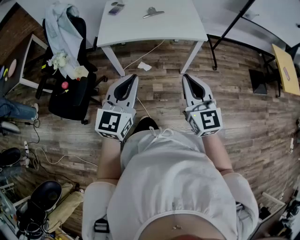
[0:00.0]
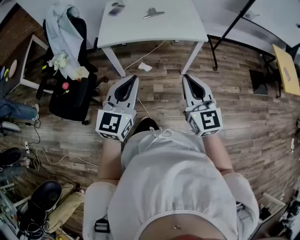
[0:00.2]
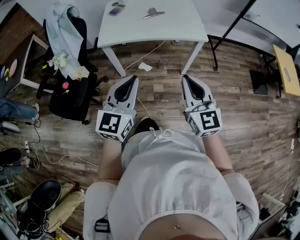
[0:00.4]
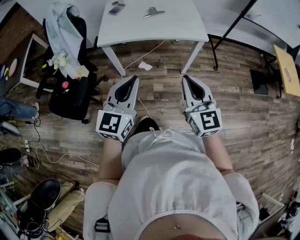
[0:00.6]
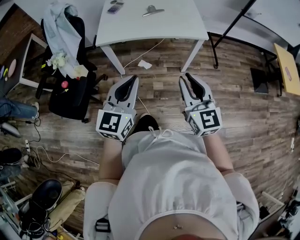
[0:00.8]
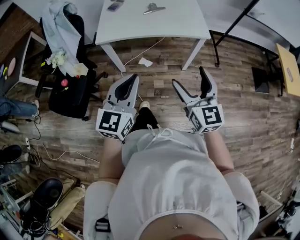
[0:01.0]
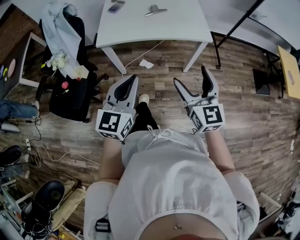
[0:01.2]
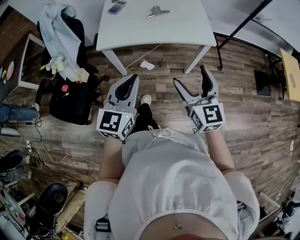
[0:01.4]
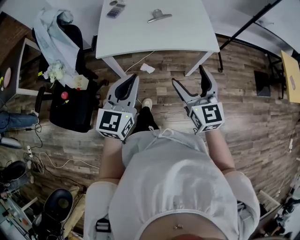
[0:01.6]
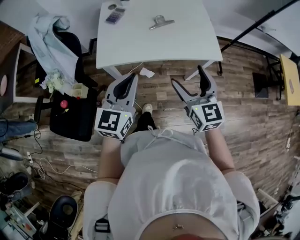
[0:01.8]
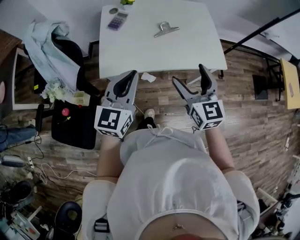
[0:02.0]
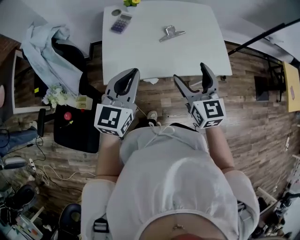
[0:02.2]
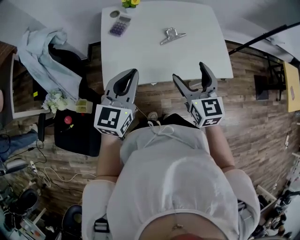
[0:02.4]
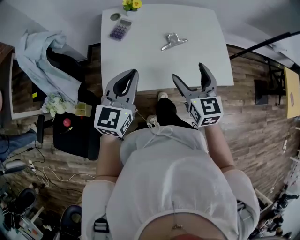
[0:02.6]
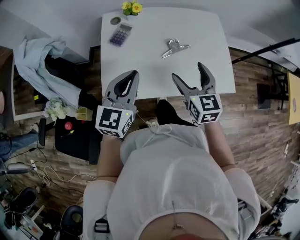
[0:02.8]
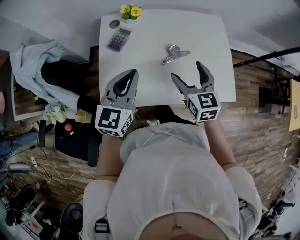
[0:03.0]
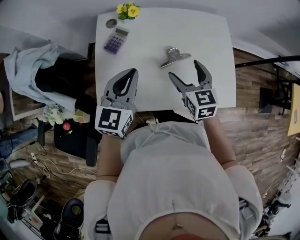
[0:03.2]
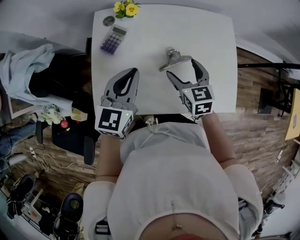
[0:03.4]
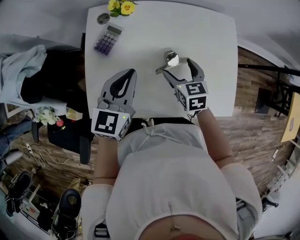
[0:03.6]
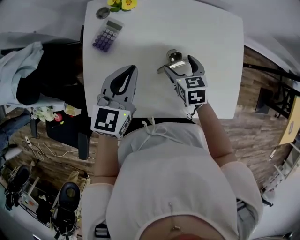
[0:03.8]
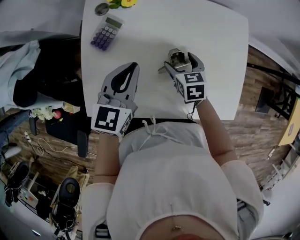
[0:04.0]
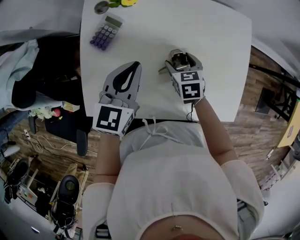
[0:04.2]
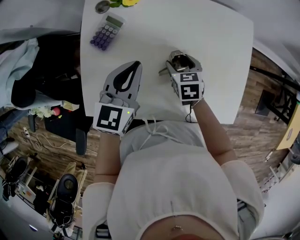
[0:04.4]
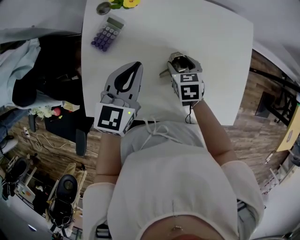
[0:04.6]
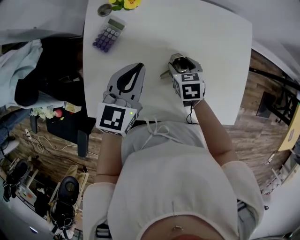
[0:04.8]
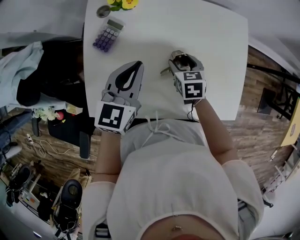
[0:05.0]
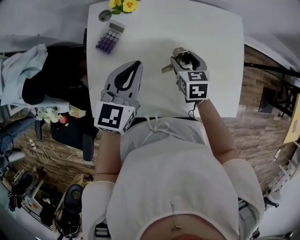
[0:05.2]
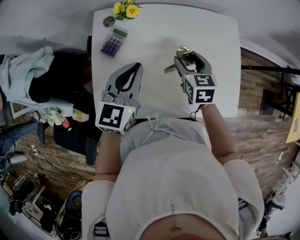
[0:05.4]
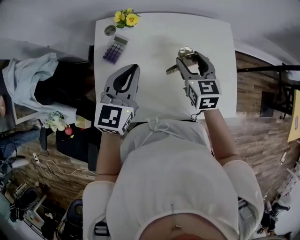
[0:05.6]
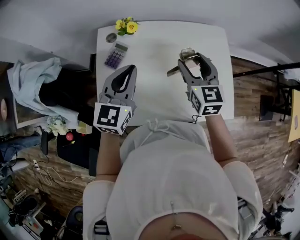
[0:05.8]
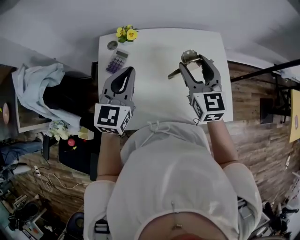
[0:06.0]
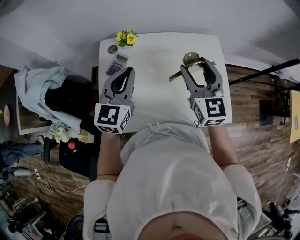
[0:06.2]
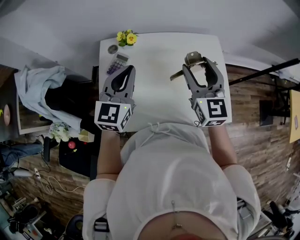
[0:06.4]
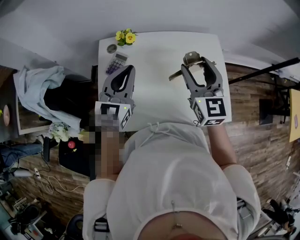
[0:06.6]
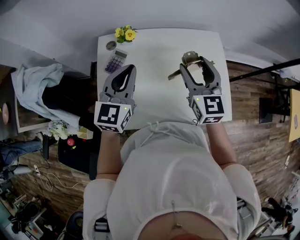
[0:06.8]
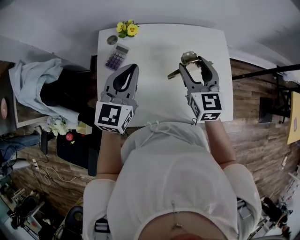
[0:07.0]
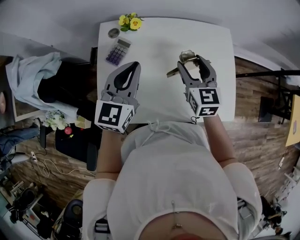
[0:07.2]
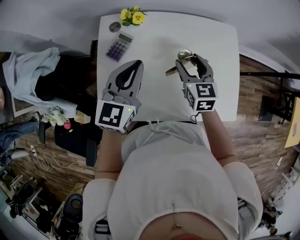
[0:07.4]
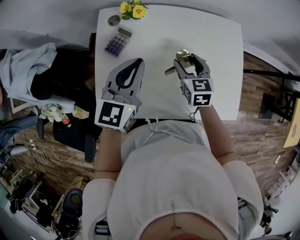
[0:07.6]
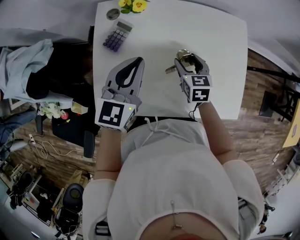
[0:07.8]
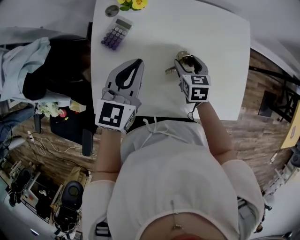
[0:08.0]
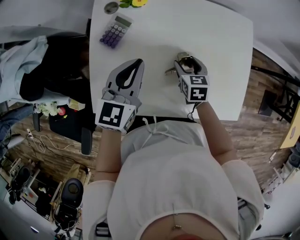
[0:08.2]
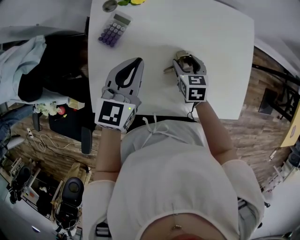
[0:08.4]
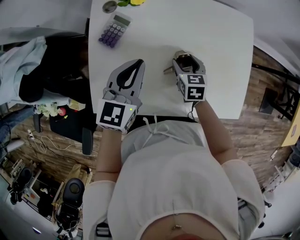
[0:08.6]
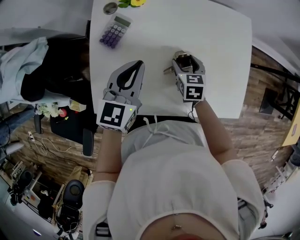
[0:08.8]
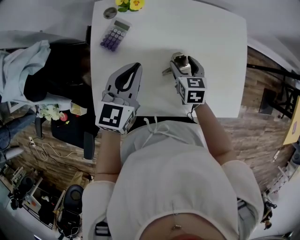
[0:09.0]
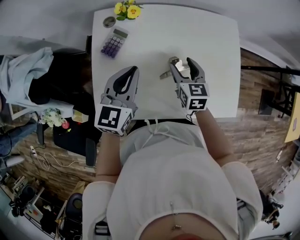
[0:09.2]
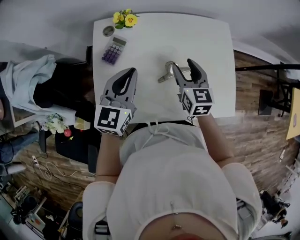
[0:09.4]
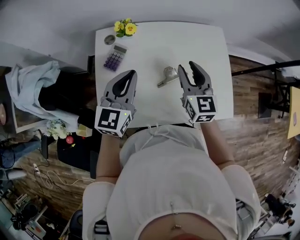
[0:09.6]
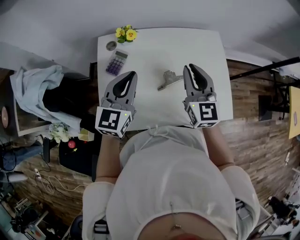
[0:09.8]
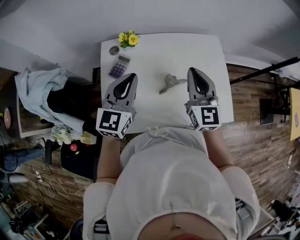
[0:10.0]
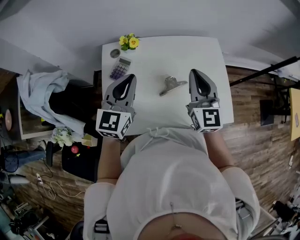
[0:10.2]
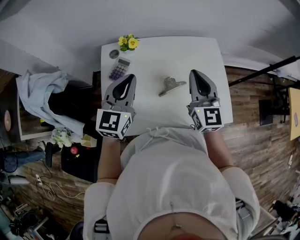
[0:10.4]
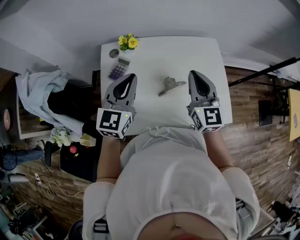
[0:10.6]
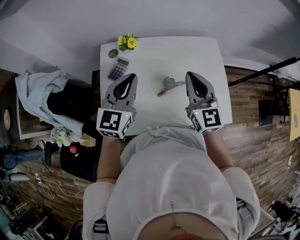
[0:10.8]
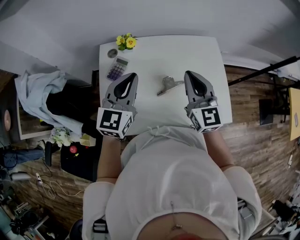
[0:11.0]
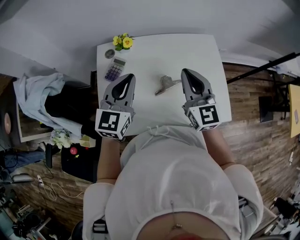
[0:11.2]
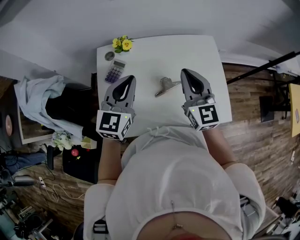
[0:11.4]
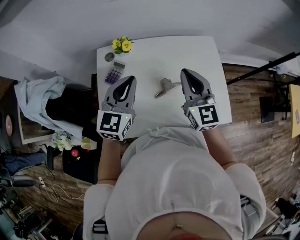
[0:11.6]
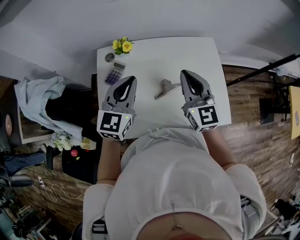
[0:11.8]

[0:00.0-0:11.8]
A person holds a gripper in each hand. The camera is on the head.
0:00.0 to 0:01.4: Both grippers travel together forward, about 10 cm. The right gripper opens up.
0:01.4 to 0:03.0: Both grippers are carried forward, roughly 50 cm.
0:03.0 to 0:04.4: The left gripper shifts about 20 cm forward and downward; the right gripper heads downward and forward, covering about 25 cm, and points its fingers roughly 30 degrees further downward.
0:04.4 to 0:06.0: The right gripper goes approximately 30 cm upward, and tilts its fingers some 40 degrees upward. The left gripper shifts about 15 cm upward.
0:06.0 to 0:07.4: The right gripper goes approximately 15 cm downward.
0:07.4 to 0:08.8: The left gripper moves downward, about 10 cm; the right gripper goes roughly 15 cm downward, and turns by approximately 20 degrees.
0:08.8 to 0:10.4: The left gripper goes about 15 cm upward. Meanwhile the right gripper shifts roughly 30 cm upward, points its fingers roughly 50 degrees further upward, and closes up.
0:10.4 to 0:11.8: The grippers make only small movements.

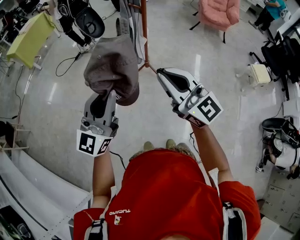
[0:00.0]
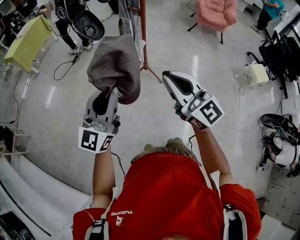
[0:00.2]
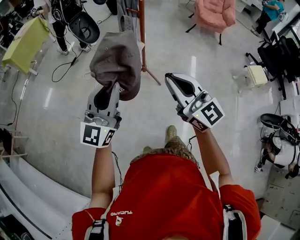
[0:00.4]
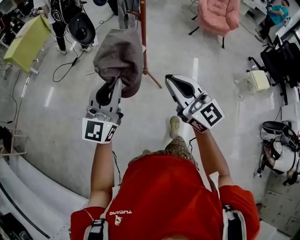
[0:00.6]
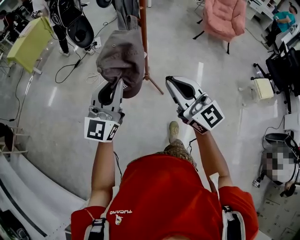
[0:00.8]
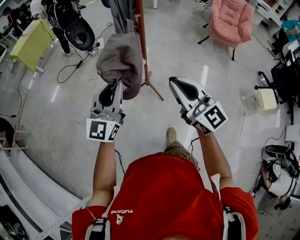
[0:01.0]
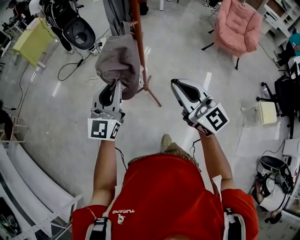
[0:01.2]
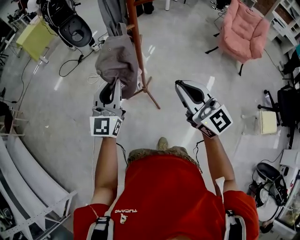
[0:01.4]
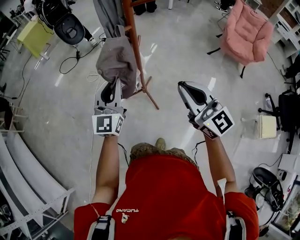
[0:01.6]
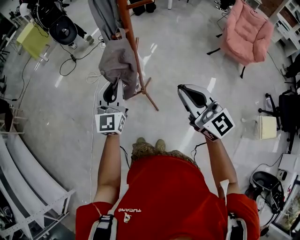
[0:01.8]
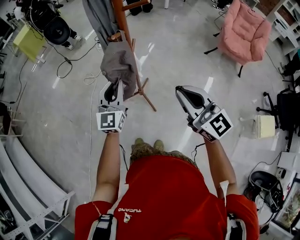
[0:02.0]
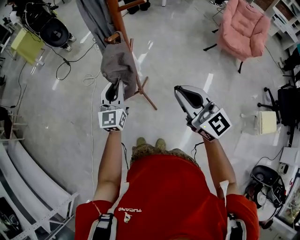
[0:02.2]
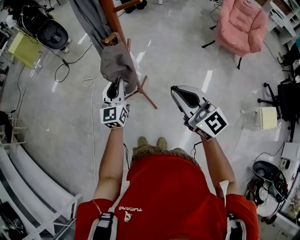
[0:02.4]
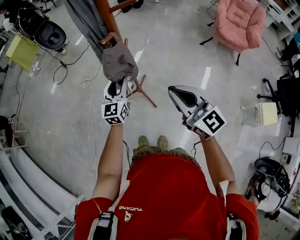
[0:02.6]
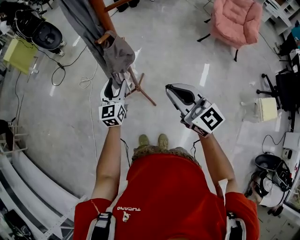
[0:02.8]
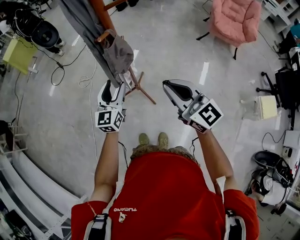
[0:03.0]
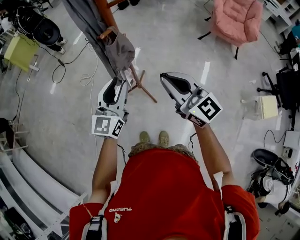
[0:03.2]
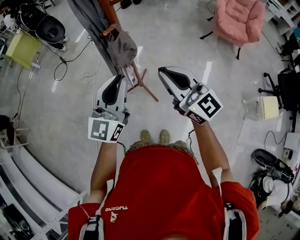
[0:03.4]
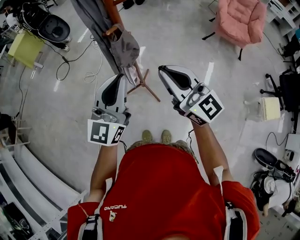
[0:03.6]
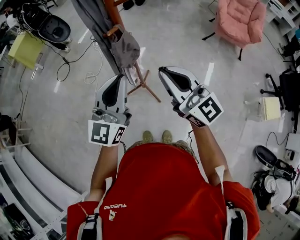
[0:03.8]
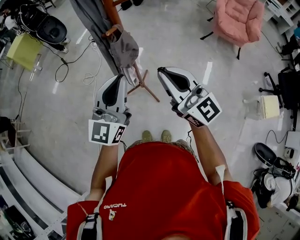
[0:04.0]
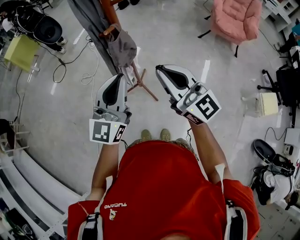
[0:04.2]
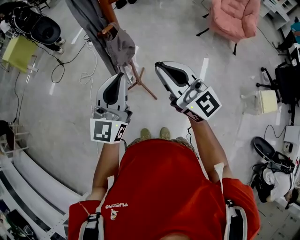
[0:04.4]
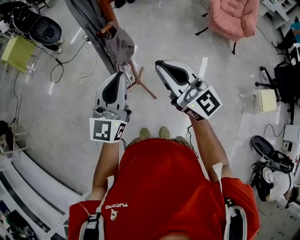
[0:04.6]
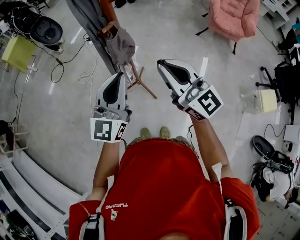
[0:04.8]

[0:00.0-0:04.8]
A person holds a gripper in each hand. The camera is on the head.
0:00.0 to 0:01.6: The grippers both shift forward and to the right by approximately 40 cm. The left gripper changes its angle by roughly 30 degrees.
0:01.6 to 0:03.2: The left gripper reaches about 15 cm downward, then returns, and opens up. The right gripper shifts by about 5 cm.
0:03.2 to 0:04.8: The left gripper is displaced upward by some 5 cm, and closes.

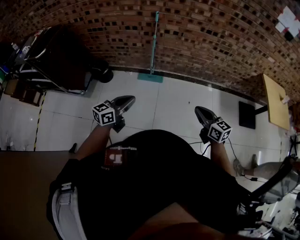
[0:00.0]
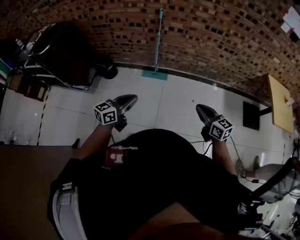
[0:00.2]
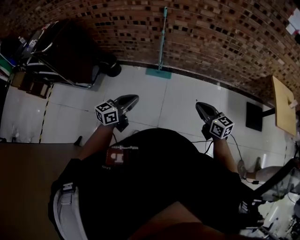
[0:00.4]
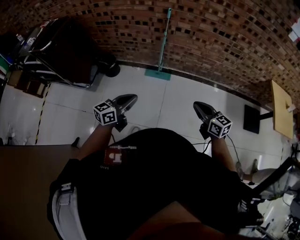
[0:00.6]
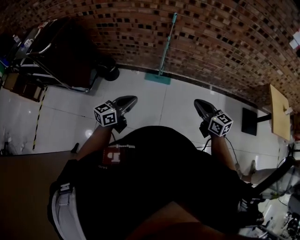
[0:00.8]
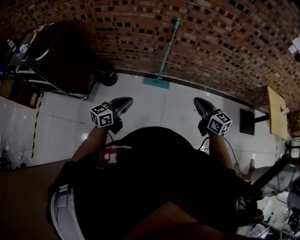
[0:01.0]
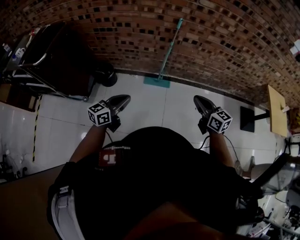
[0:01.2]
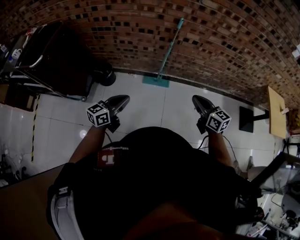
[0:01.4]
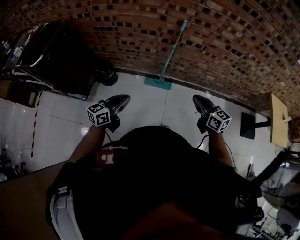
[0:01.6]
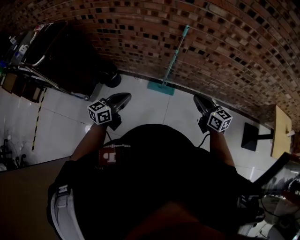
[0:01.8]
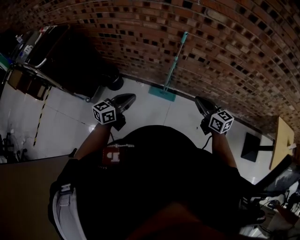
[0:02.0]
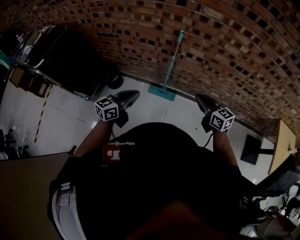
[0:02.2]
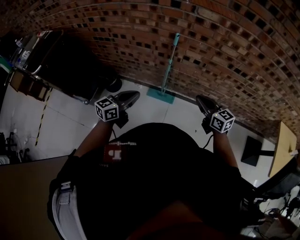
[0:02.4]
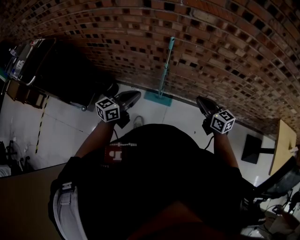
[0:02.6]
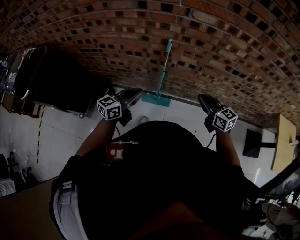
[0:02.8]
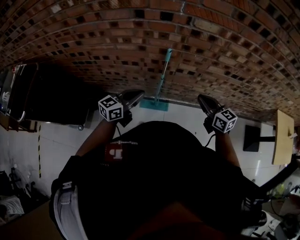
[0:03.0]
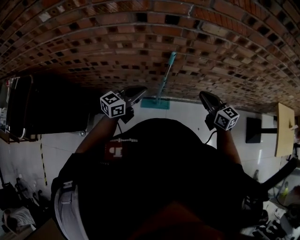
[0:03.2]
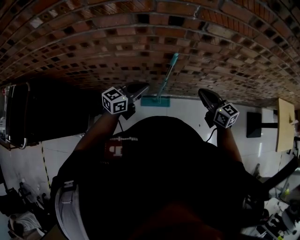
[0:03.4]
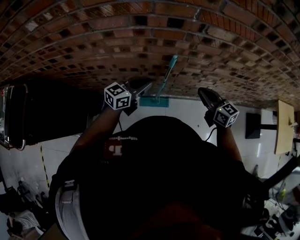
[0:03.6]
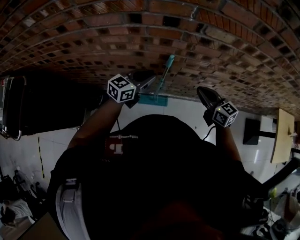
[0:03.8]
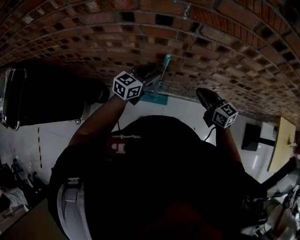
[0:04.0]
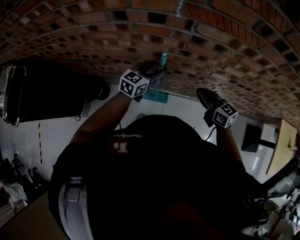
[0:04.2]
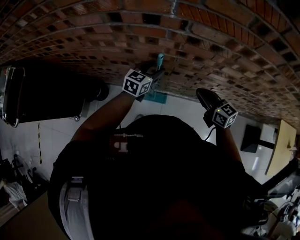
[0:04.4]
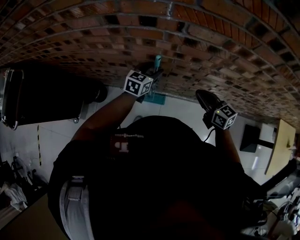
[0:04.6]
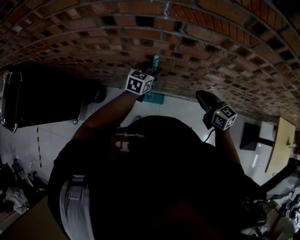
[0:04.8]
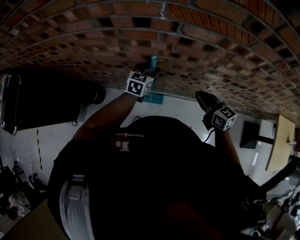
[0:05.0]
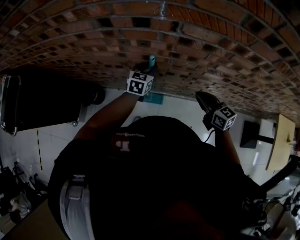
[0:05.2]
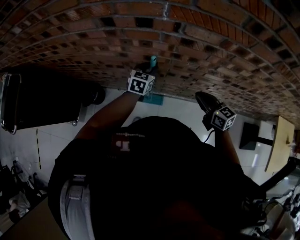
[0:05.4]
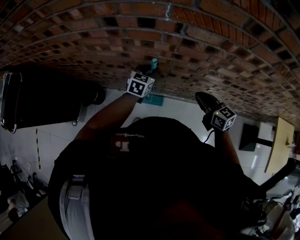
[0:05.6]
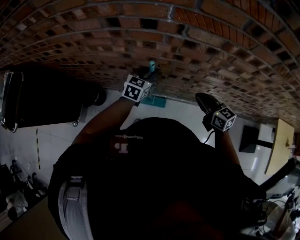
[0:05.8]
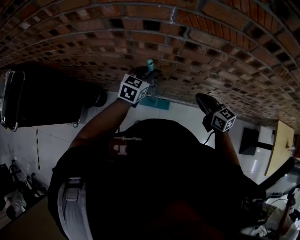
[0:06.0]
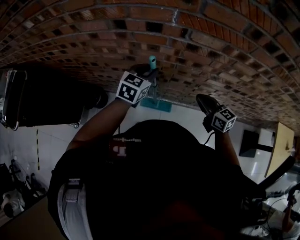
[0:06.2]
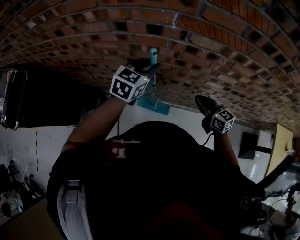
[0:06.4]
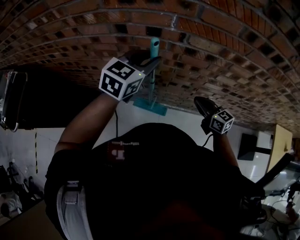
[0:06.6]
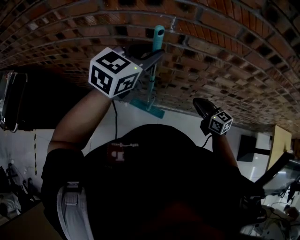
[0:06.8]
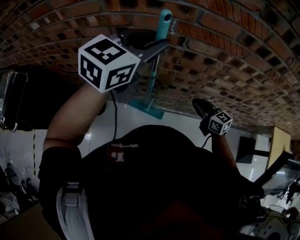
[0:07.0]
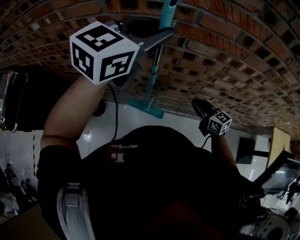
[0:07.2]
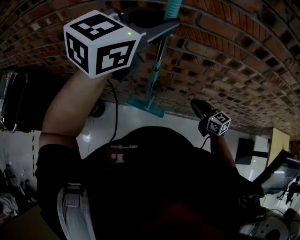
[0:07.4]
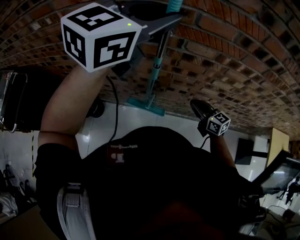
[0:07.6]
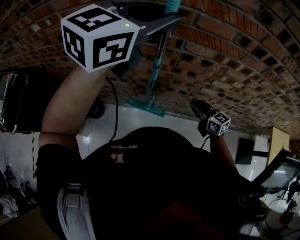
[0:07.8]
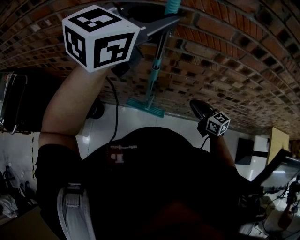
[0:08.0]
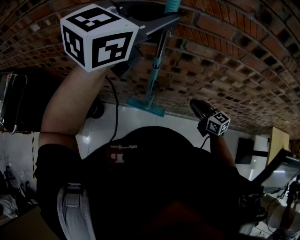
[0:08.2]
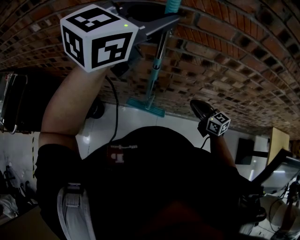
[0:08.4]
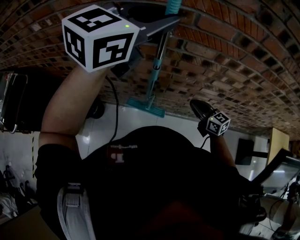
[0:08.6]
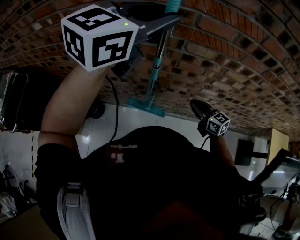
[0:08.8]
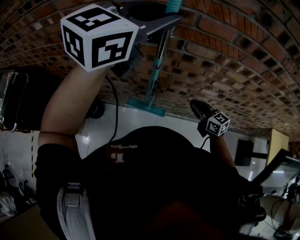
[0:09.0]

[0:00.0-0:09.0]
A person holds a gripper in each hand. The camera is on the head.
0:00.0 to 0:01.6: Both grippers move forward and to the left, about 30 cm.
0:01.6 to 0:03.0: Both grippers travel together forward and to the right, about 35 cm.
0:03.0 to 0:04.4: The left gripper moves forward and to the right, roughly 25 cm, changes its angle by some 20 degrees, and opens up. The right gripper shifts some 10 cm forward.
0:04.4 to 0:06.0: The left gripper closes its fingers.
0:06.0 to 0:07.6: The left gripper is displaced upward by some 40 cm, and swivels roughly 30 degrees.
0:07.6 to 0:09.0: Neither gripper changes place.
